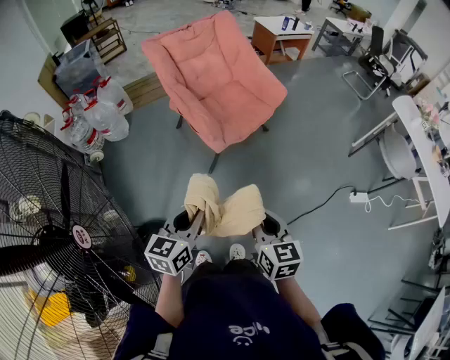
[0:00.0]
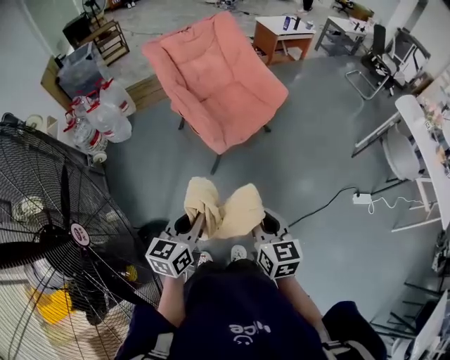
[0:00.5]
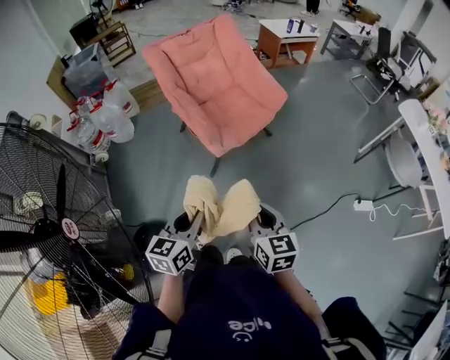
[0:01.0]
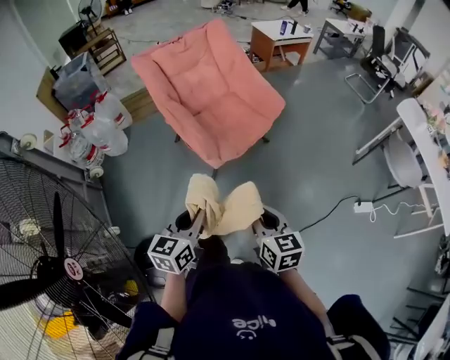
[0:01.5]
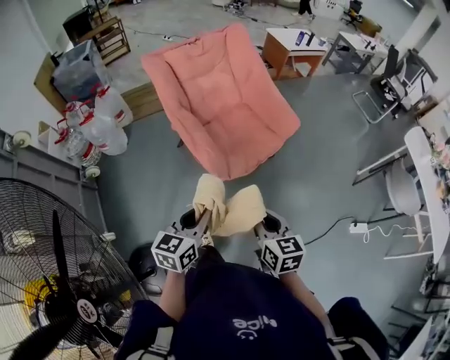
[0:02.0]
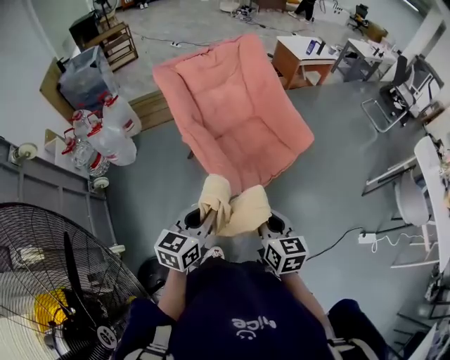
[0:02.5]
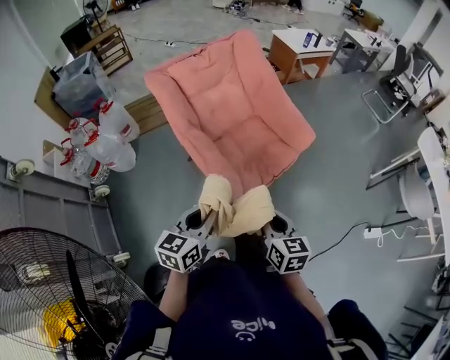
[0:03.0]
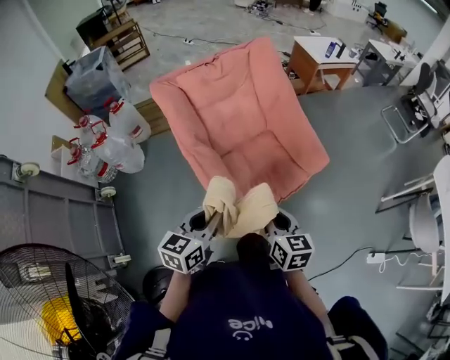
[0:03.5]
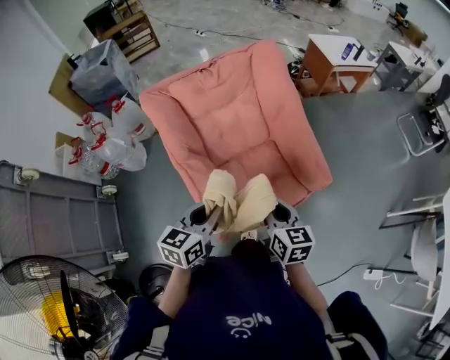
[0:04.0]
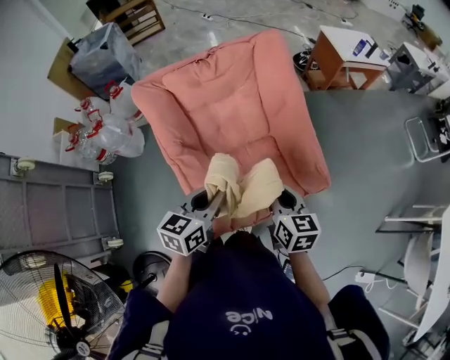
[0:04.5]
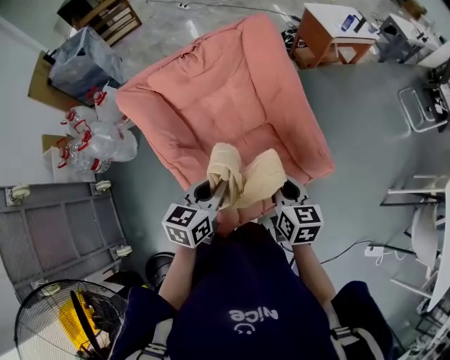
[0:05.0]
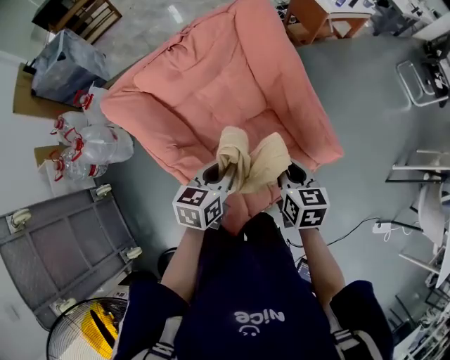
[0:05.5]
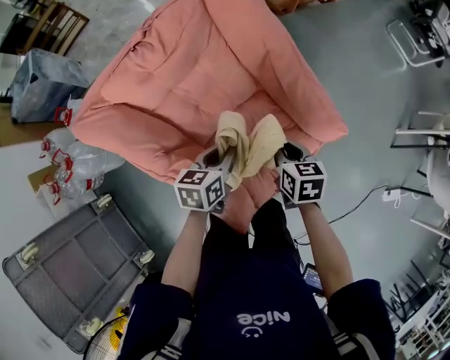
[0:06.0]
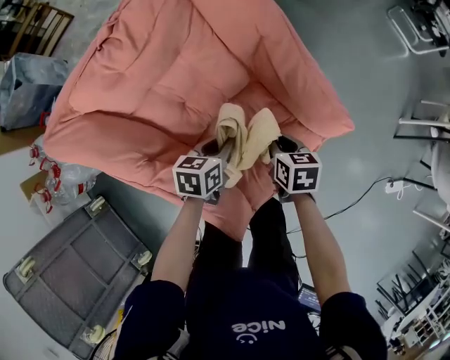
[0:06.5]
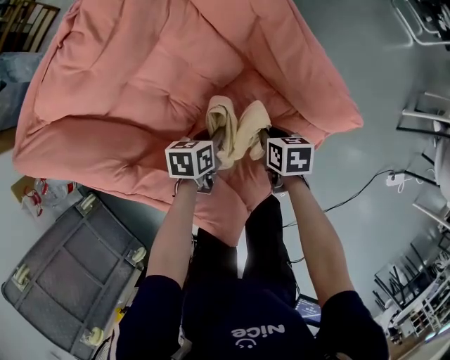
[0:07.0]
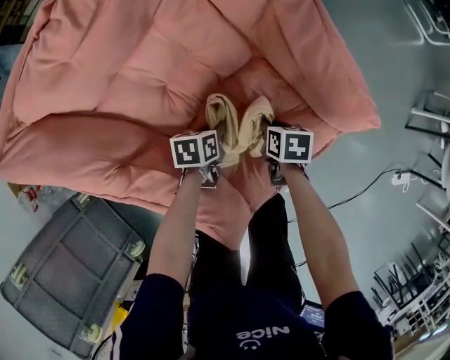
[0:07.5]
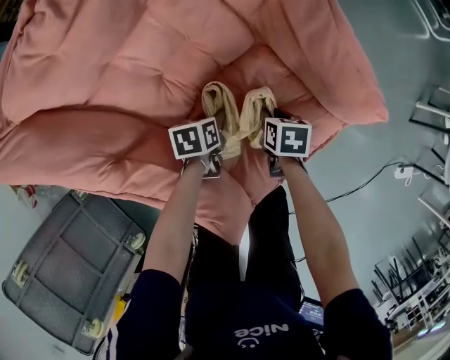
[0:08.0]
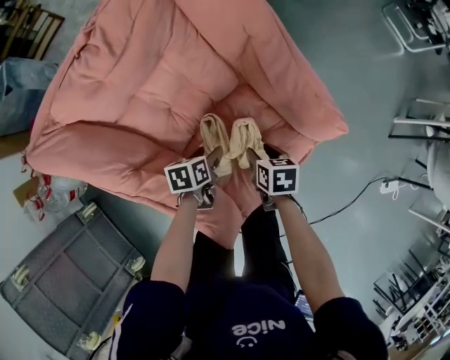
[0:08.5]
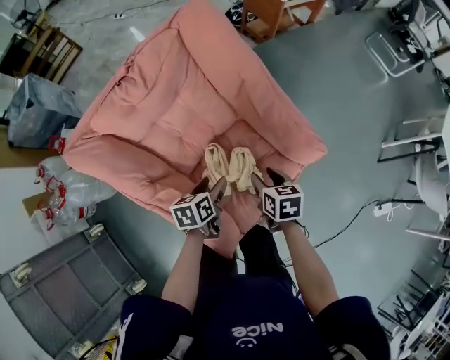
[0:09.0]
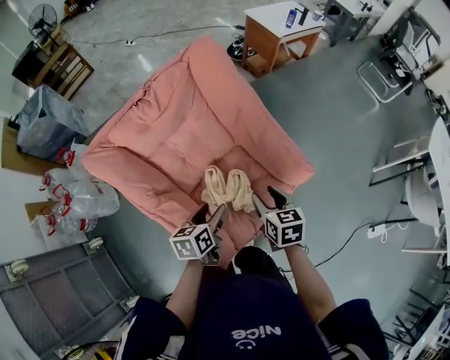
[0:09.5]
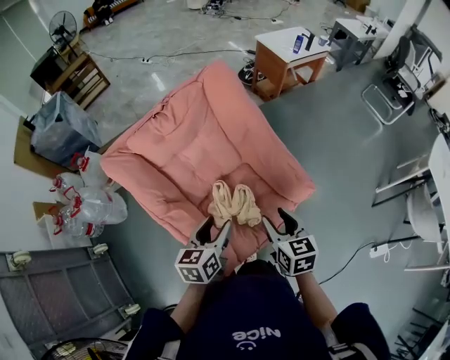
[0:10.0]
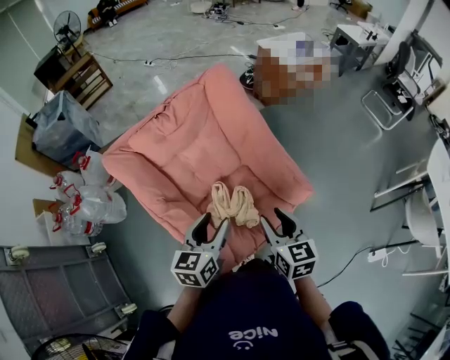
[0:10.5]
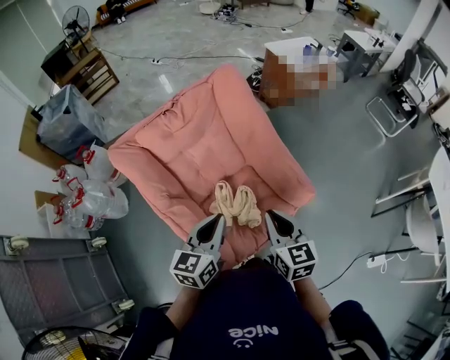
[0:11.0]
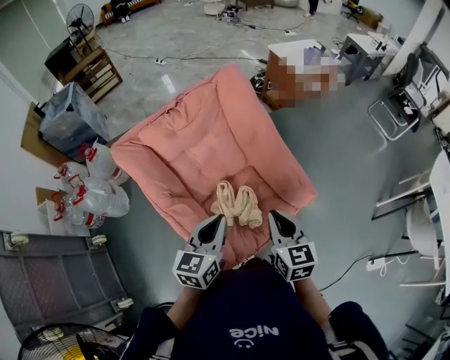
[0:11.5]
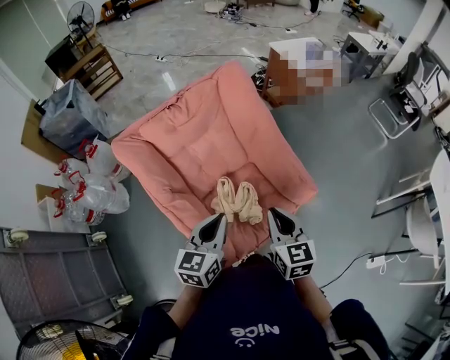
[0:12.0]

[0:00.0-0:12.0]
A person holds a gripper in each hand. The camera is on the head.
0:00.0 to 0:02.0: Both grippers move forward, roughly 25 cm.
0:02.0 to 0:04.0: Both grippers travel together forward, about 40 cm.
0:04.0 to 0:06.0: Both grippers travel together forward and downward, some 30 cm. The left gripper rotates about 20 degrees. Meanwhile the right gripper swivels approximately 30 degrees.
0:06.0 to 0:08.0: Both grippers travel together downward, approximately 30 cm. The right gripper swivels approximately 20 degrees, while the left gripper turns by about 30 degrees.
0:08.0 to 0:10.0: Both grippers travel together upward, approximately 50 cm. The right gripper tilts its fingers roughly 30 degrees upward, and opens its fingers. The left gripper tilts its fingers approximately 30 degrees upward, and opens its fingers.
0:10.0 to 0:12.0: The left gripper moves upward, approximately 5 cm, and closes; the right gripper changes place by approximately 5 cm, and closes its fingers.

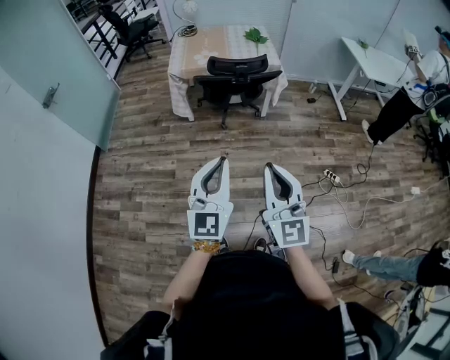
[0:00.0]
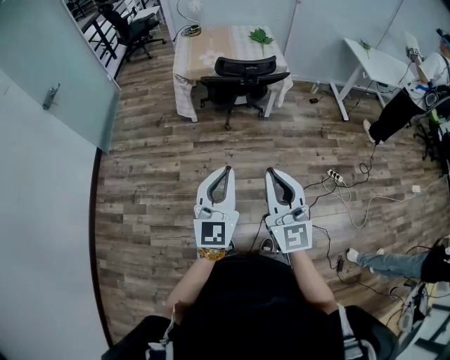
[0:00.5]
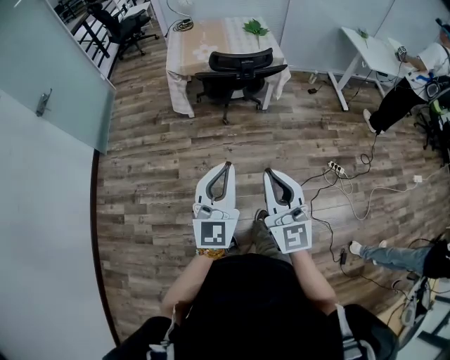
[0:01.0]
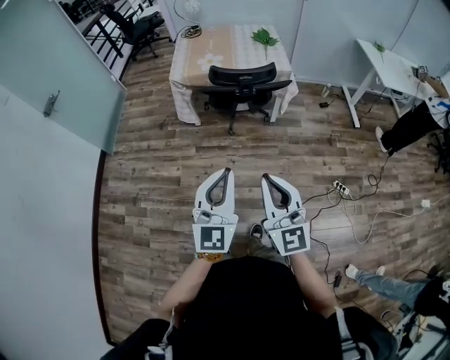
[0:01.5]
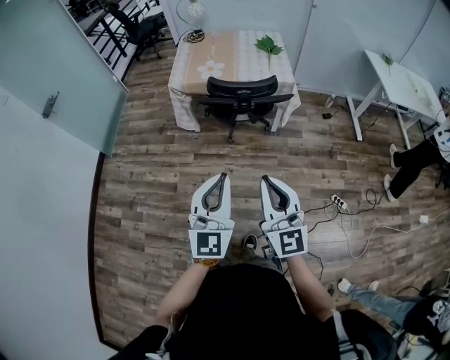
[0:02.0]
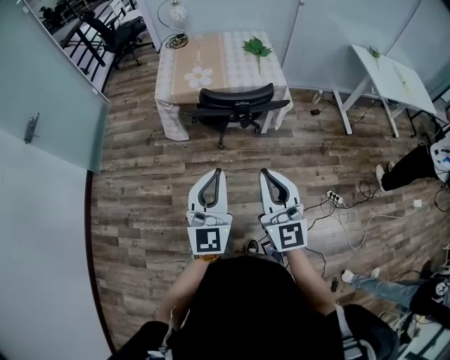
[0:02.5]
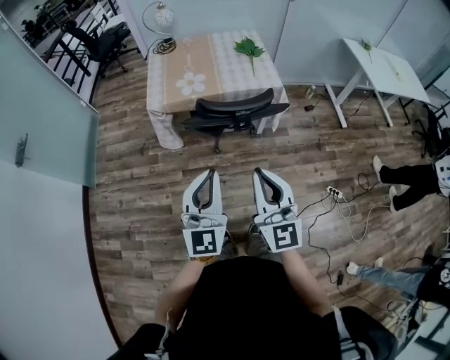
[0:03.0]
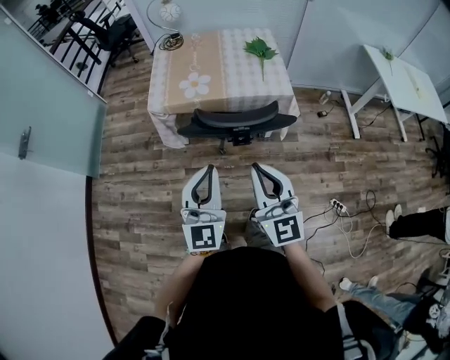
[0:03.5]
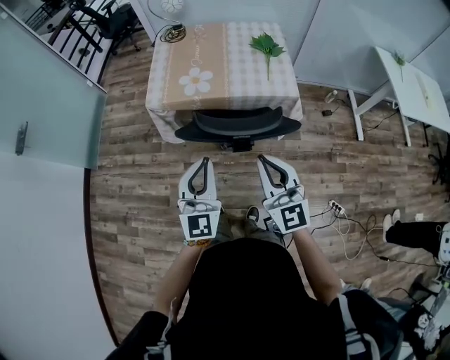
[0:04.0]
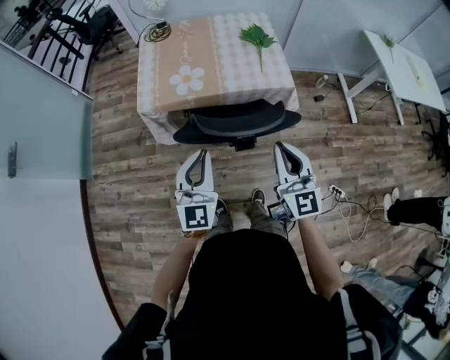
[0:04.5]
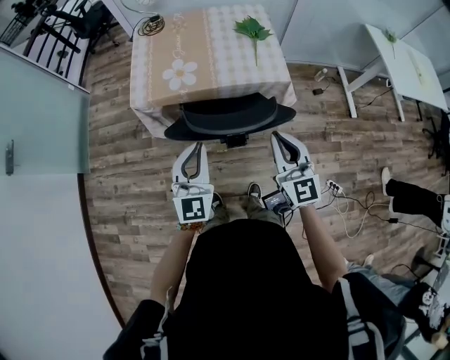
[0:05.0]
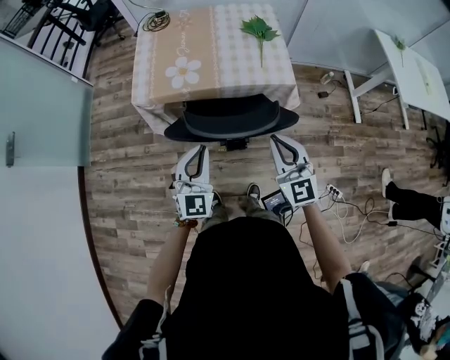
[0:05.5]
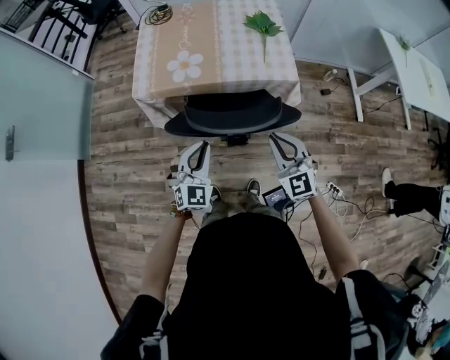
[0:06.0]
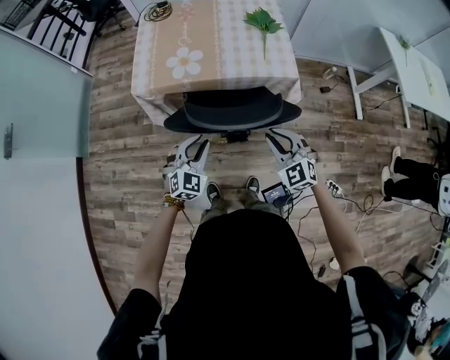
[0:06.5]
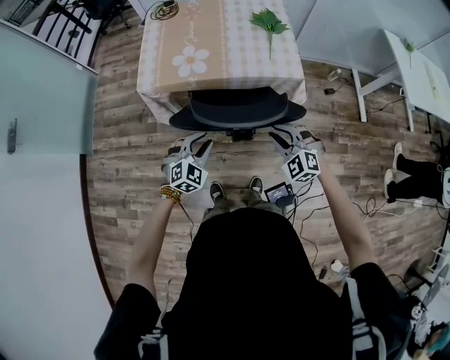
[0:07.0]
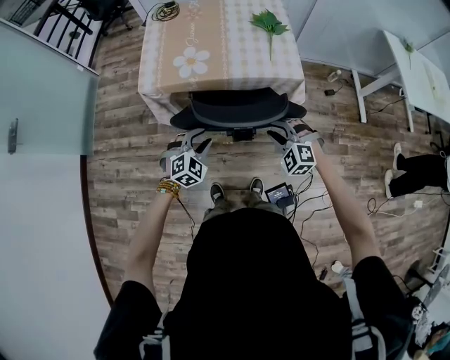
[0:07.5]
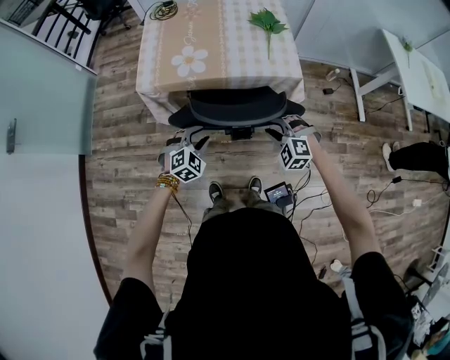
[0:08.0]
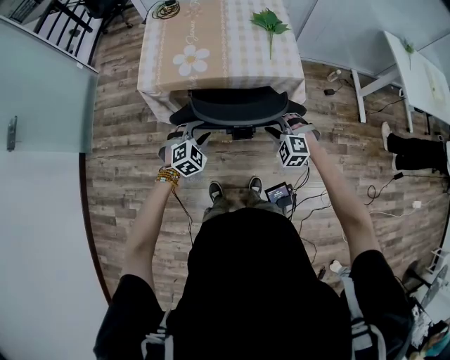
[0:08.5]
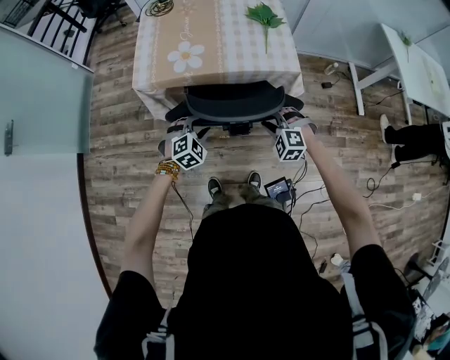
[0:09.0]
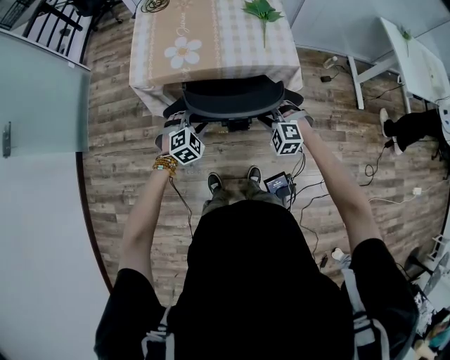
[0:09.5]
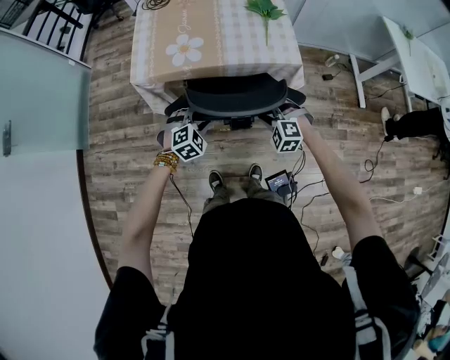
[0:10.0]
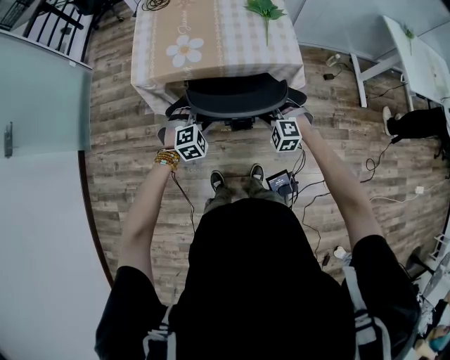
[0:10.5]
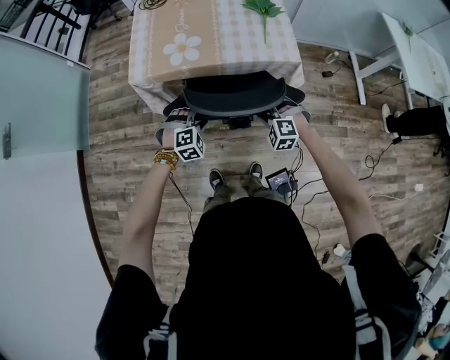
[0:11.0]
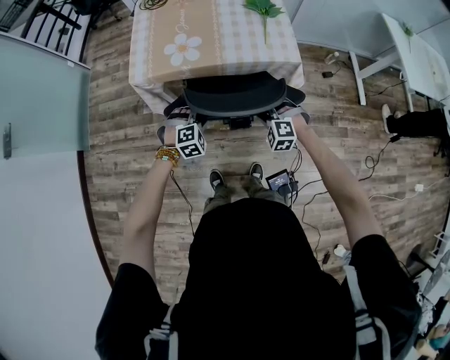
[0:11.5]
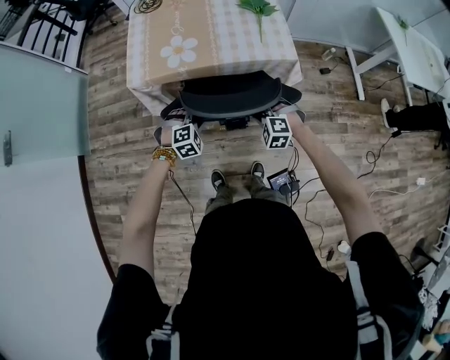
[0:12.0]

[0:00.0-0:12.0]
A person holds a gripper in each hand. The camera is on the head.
0:00.0 to 0:02.0: The grippers both shift forward by roughly 20 cm.
0:02.0 to 0:04.0: Both grippers travel together forward, approximately 35 cm.
0:04.0 to 0:06.0: The left gripper goes about 15 cm downward and forward, and changes its angle by approximately 30 degrees, while the right gripper moves downward, forward and to the right, roughly 15 cm, and swivels some 20 degrees.
0:06.0 to 0:08.0: The grippers both shift downward by some 10 cm. The right gripper points its fingers some 30 degrees further downward, and opens up. Meanwhile the left gripper rotates approximately 30 degrees, and opens.
0:08.0 to 0:10.0: The grippers make only small movements.
0:10.0 to 0:12.0: The grippers move only a little.

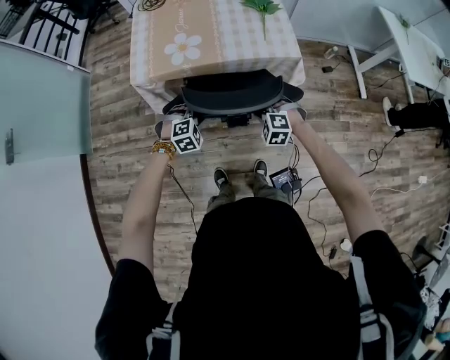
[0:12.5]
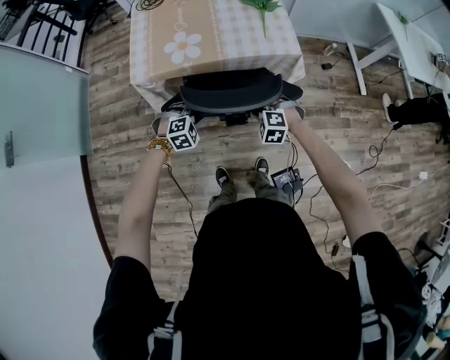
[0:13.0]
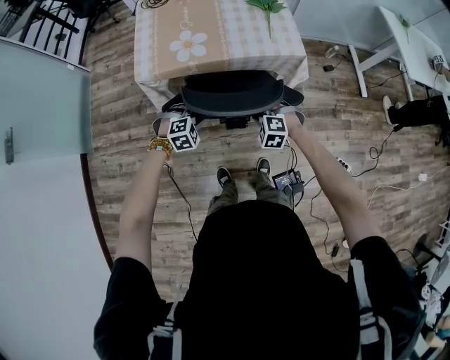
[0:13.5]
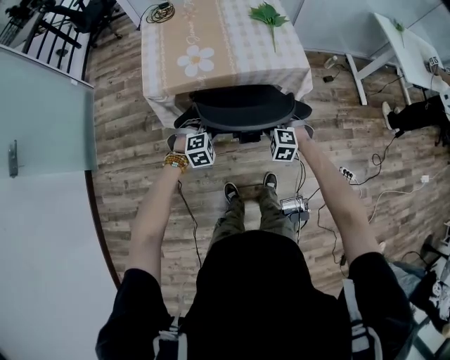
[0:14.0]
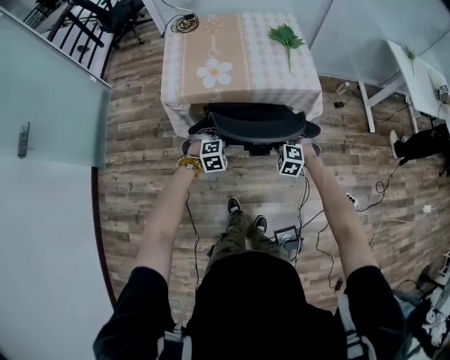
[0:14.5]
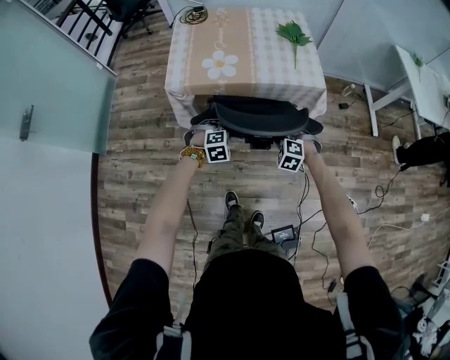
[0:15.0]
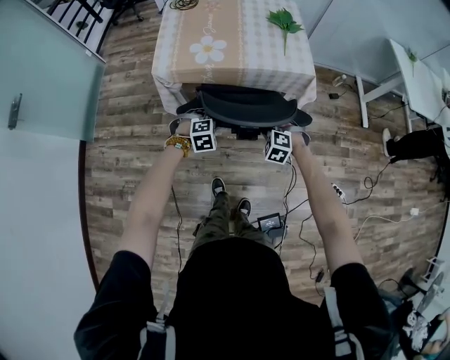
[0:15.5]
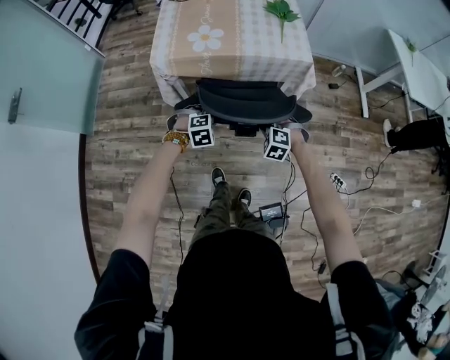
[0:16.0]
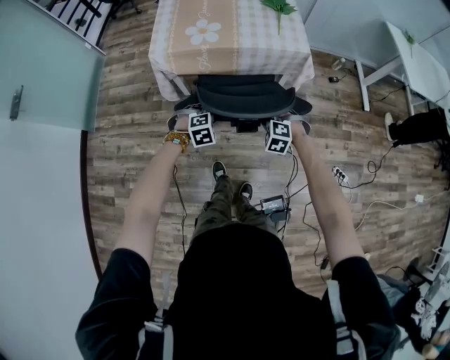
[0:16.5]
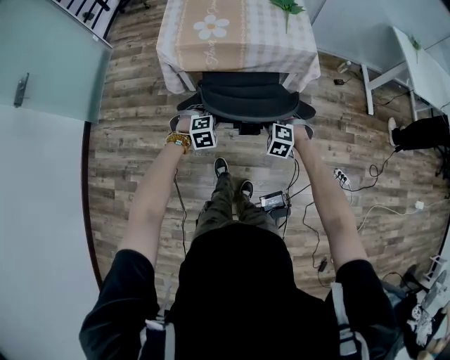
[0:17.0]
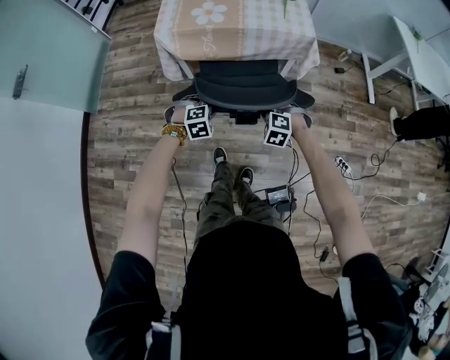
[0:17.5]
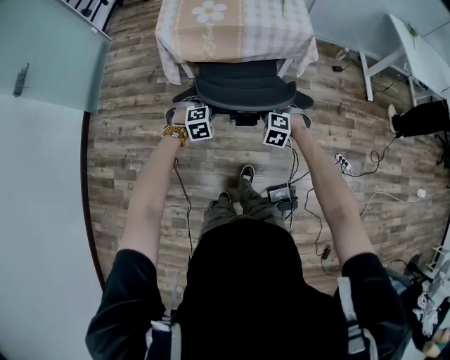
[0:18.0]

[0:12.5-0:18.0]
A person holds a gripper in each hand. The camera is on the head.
0:12.5 to 0:14.5: The grippers stay close to where they were, moving slightly.
0:14.5 to 0:16.0: The two grippers go about 10 cm backward.
0:16.0 to 0:18.0: Both grippers travel together backward, some 15 cm.
